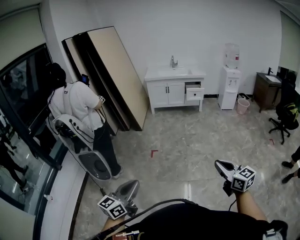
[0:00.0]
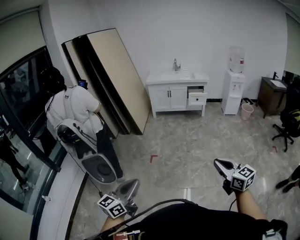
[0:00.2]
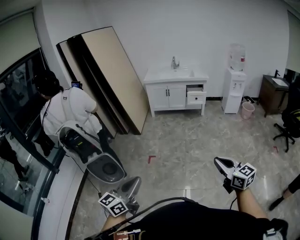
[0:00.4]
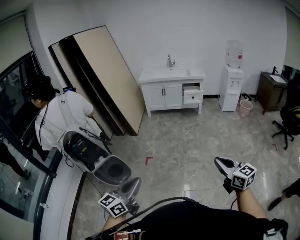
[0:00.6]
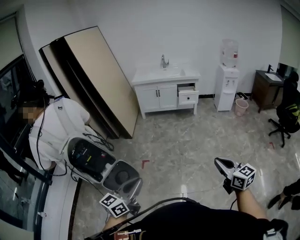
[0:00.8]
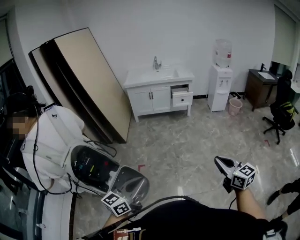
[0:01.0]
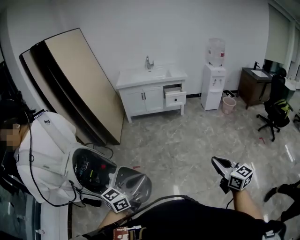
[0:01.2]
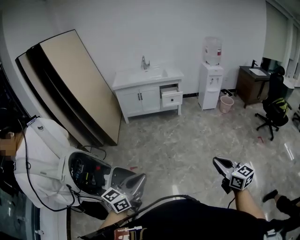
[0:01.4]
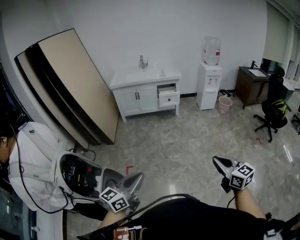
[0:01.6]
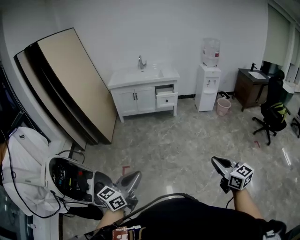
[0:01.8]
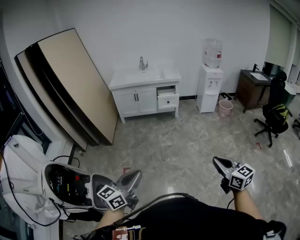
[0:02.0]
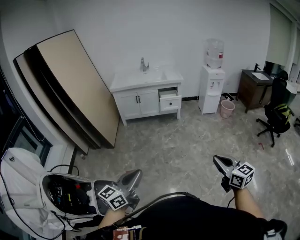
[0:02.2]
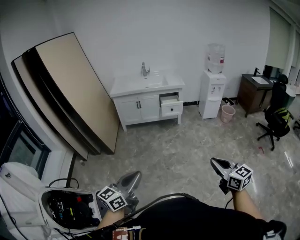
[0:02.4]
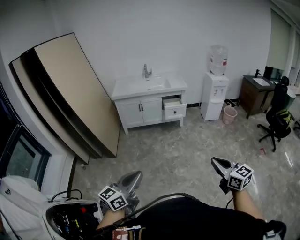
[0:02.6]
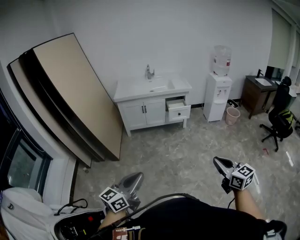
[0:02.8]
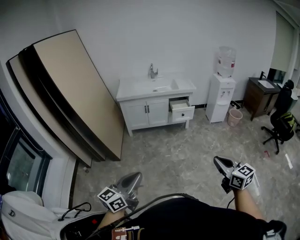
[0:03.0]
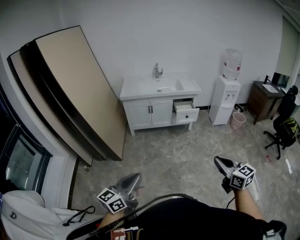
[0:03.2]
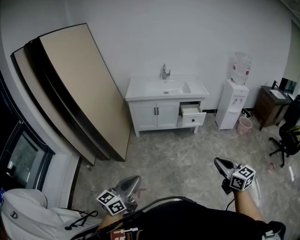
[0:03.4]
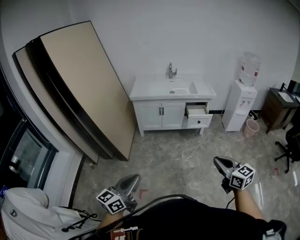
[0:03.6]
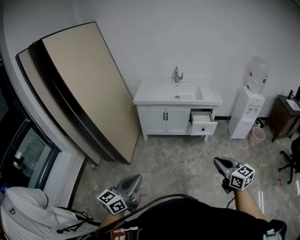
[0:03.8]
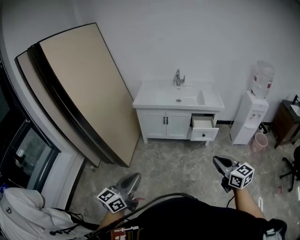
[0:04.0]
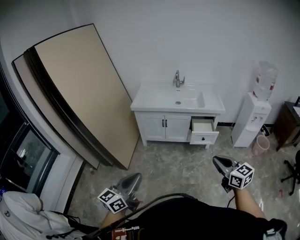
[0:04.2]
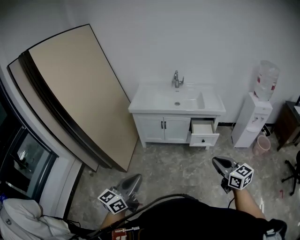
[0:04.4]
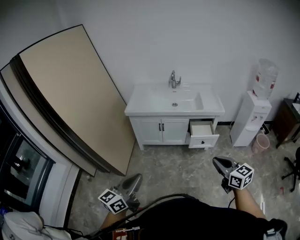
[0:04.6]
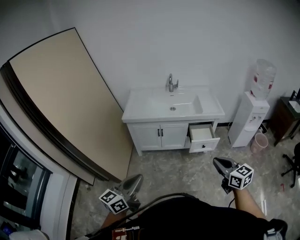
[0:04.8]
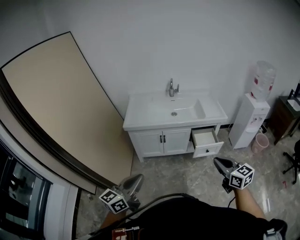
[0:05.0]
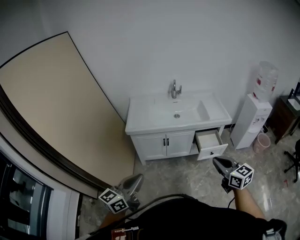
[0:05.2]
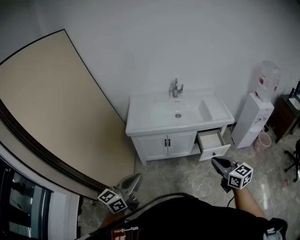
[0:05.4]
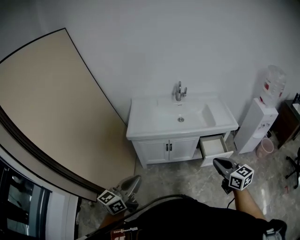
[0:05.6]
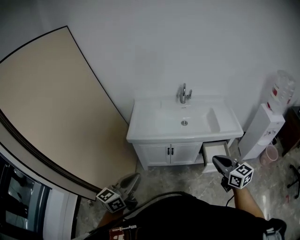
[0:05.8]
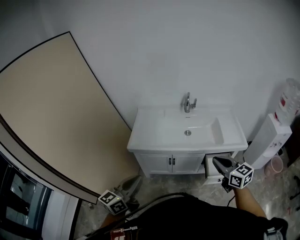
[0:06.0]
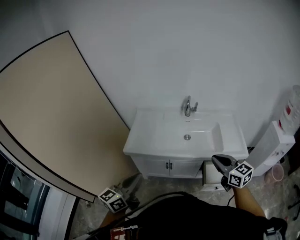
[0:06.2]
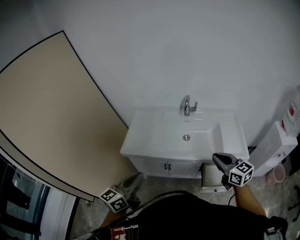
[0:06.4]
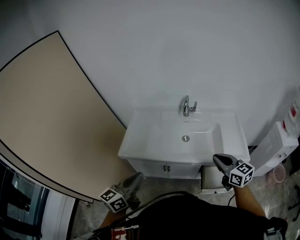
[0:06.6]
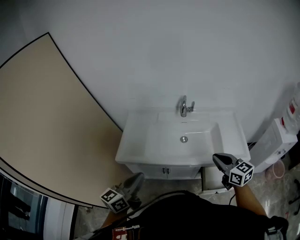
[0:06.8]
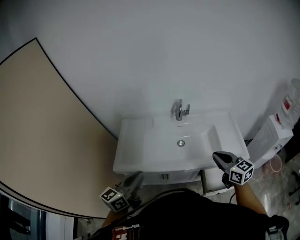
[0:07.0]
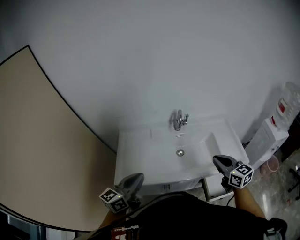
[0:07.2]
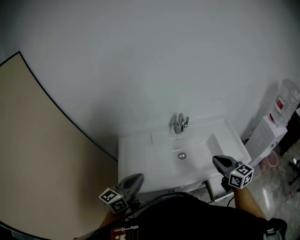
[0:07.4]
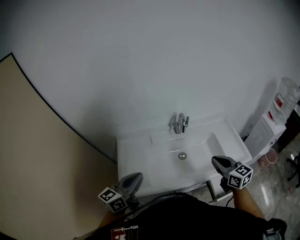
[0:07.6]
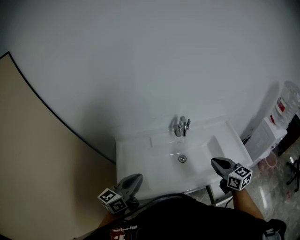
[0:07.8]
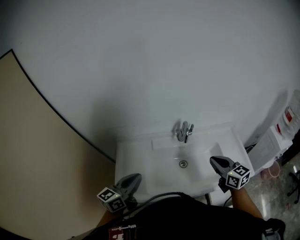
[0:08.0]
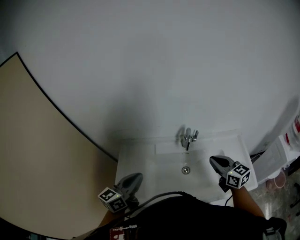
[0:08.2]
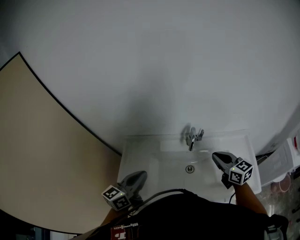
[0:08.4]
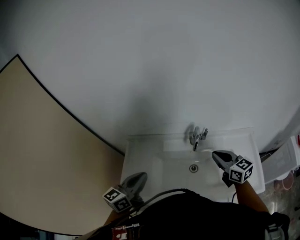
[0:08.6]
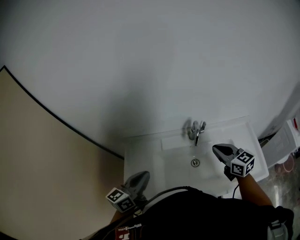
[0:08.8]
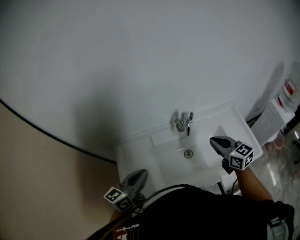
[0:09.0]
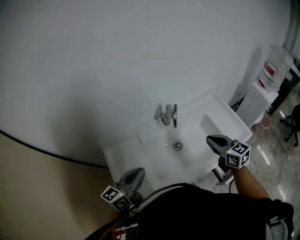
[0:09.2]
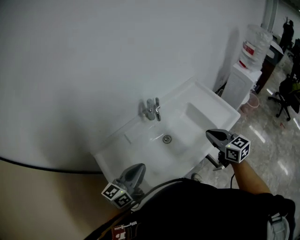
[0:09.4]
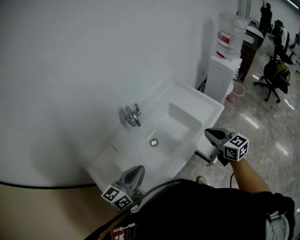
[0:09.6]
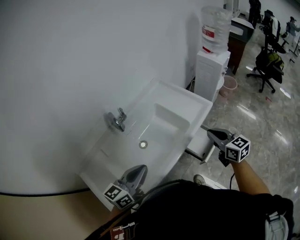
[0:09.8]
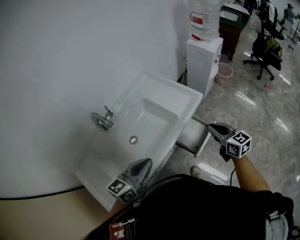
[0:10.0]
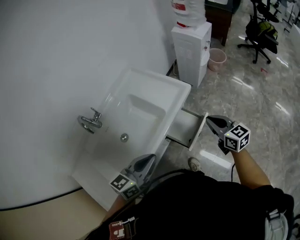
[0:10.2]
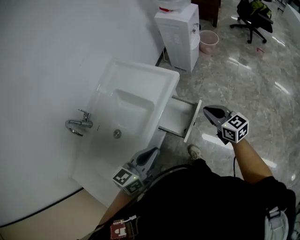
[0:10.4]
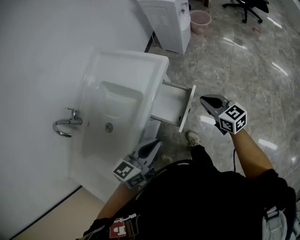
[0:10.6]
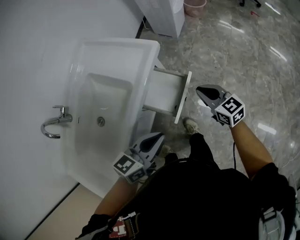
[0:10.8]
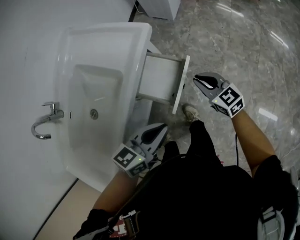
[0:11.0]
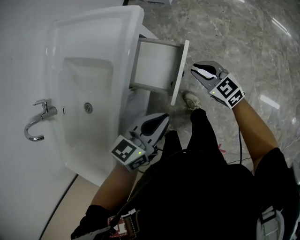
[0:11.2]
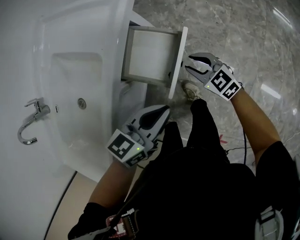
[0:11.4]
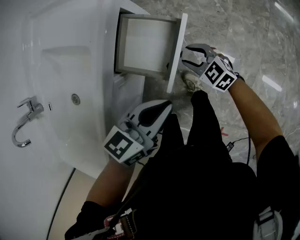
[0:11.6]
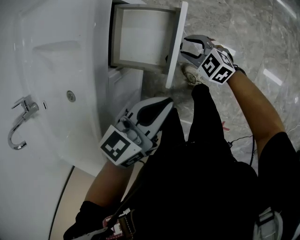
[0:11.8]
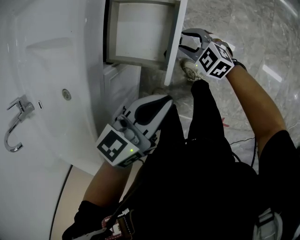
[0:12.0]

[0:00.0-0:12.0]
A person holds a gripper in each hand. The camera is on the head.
0:00.0 to 0:01.6: The grippers both shift forward and to the right by approximately 40 cm.
0:01.6 to 0:03.0: The grippers both shift forward and to the left by some 30 cm.
0:03.0 to 0:04.4: Both grippers travel together forward, about 40 cm.
0:04.4 to 0:06.0: The pair of grippers is taken forward, some 50 cm.
0:06.0 to 0:07.6: The grippers both shift forward by roughly 35 cm.
0:07.6 to 0:09.0: Both grippers travel together forward, roughly 15 cm.
0:09.0 to 0:10.4: Both grippers are carried some 50 cm. The left gripper changes its angle by roughly 50 degrees. The right gripper changes its angle by about 40 degrees.
0:10.4 to 0:12.0: The left gripper goes about 30 cm downward and to the right, and changes its angle by about 20 degrees. The right gripper shifts about 40 cm downward, swivels about 30 degrees, and opens its fingers.

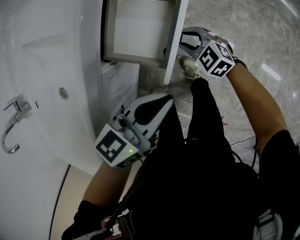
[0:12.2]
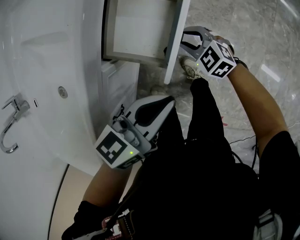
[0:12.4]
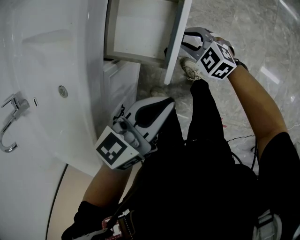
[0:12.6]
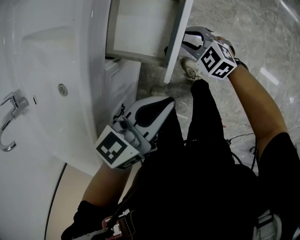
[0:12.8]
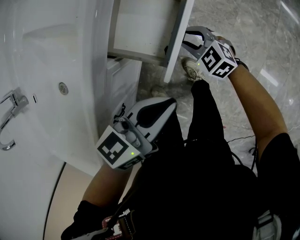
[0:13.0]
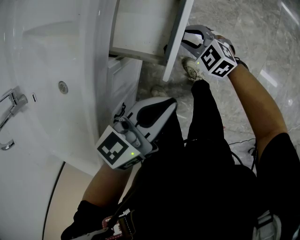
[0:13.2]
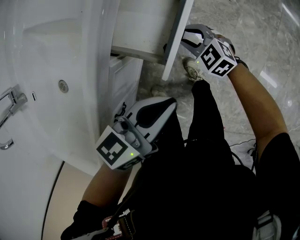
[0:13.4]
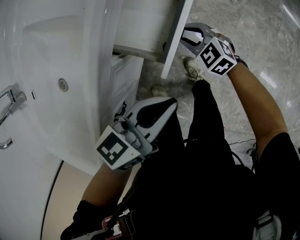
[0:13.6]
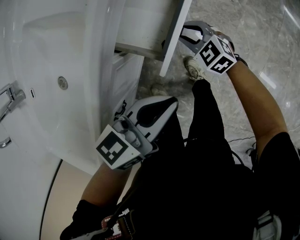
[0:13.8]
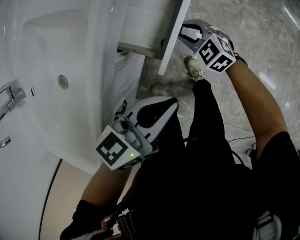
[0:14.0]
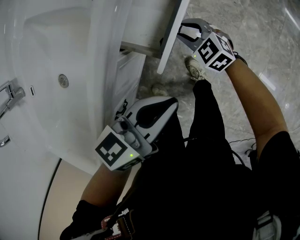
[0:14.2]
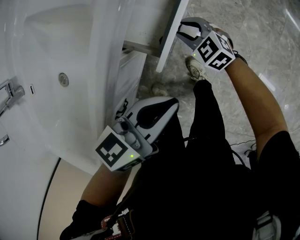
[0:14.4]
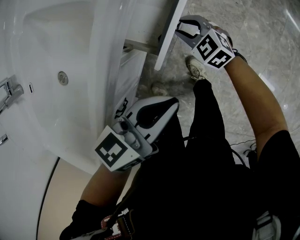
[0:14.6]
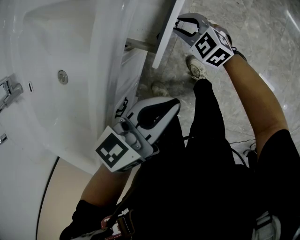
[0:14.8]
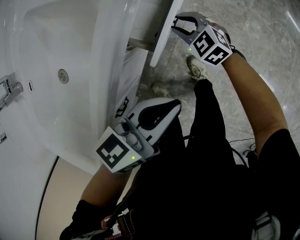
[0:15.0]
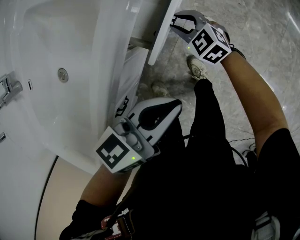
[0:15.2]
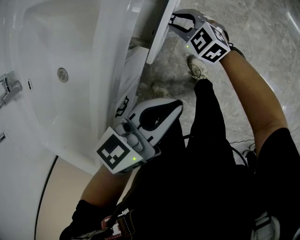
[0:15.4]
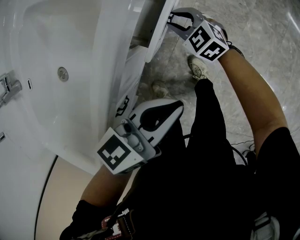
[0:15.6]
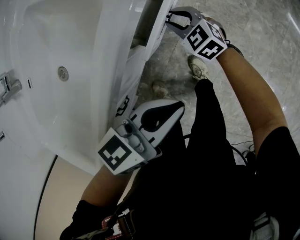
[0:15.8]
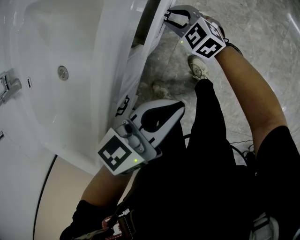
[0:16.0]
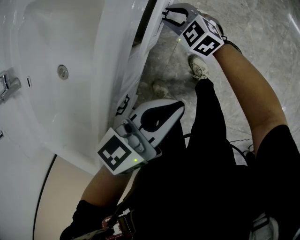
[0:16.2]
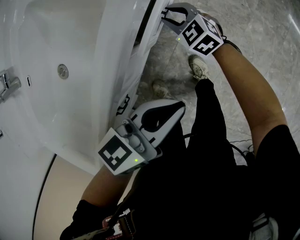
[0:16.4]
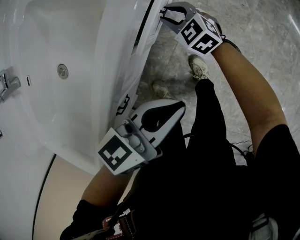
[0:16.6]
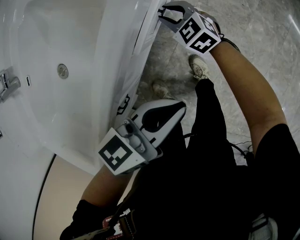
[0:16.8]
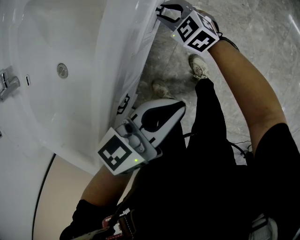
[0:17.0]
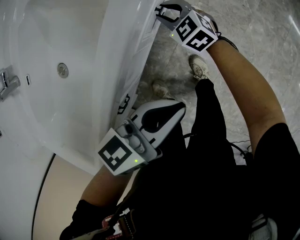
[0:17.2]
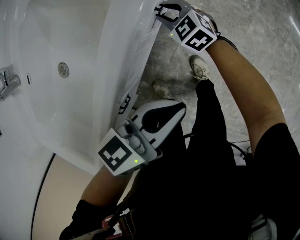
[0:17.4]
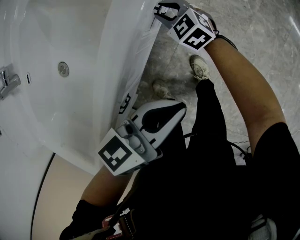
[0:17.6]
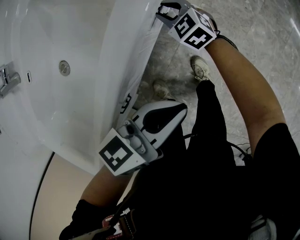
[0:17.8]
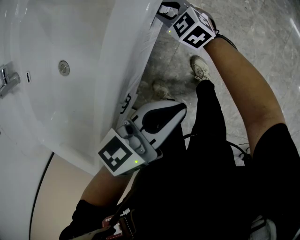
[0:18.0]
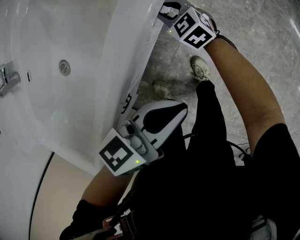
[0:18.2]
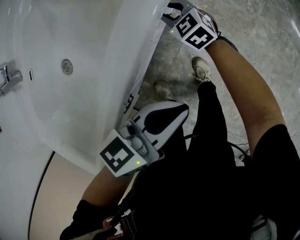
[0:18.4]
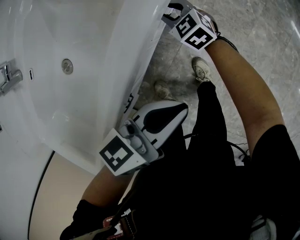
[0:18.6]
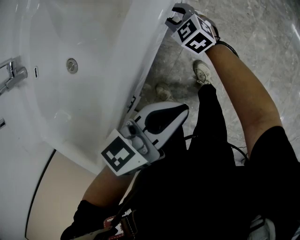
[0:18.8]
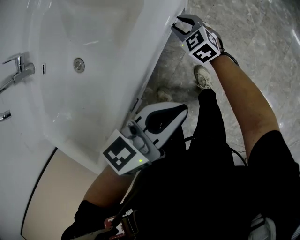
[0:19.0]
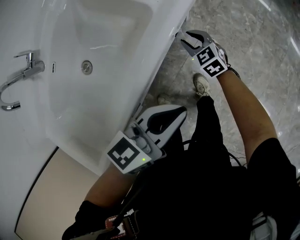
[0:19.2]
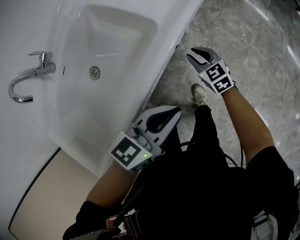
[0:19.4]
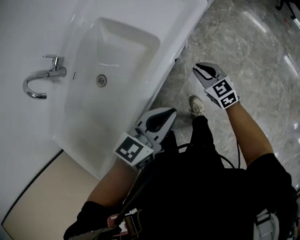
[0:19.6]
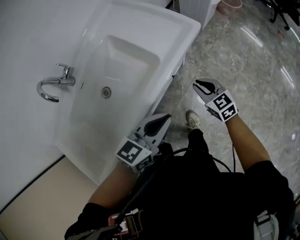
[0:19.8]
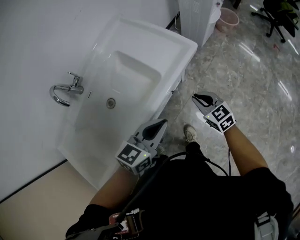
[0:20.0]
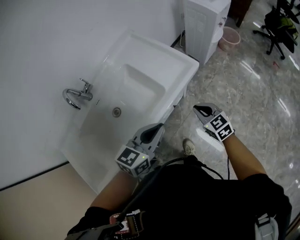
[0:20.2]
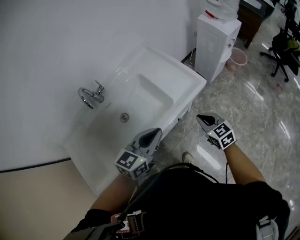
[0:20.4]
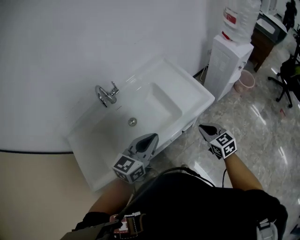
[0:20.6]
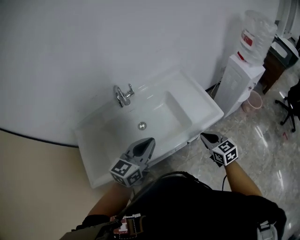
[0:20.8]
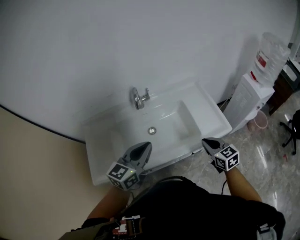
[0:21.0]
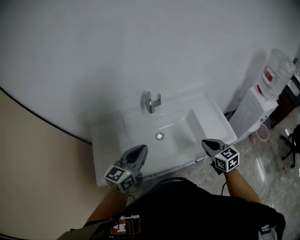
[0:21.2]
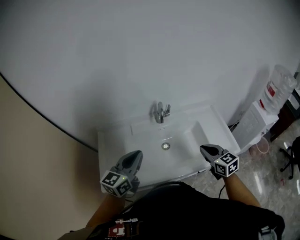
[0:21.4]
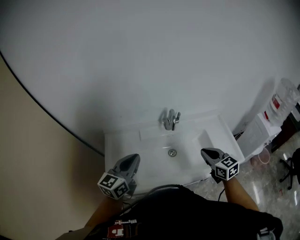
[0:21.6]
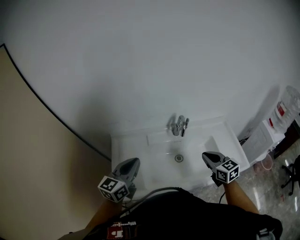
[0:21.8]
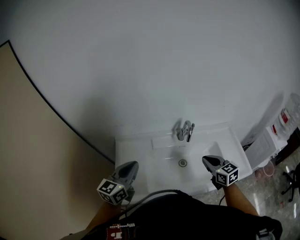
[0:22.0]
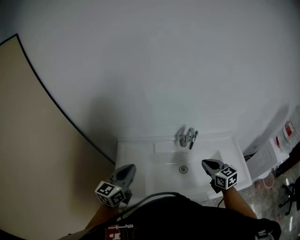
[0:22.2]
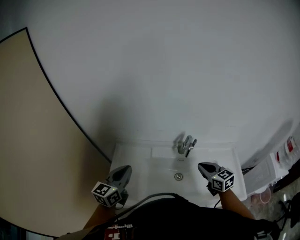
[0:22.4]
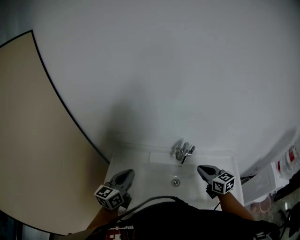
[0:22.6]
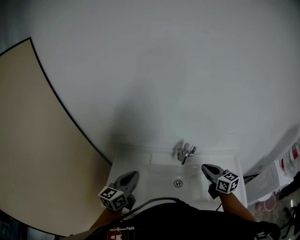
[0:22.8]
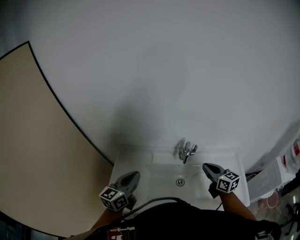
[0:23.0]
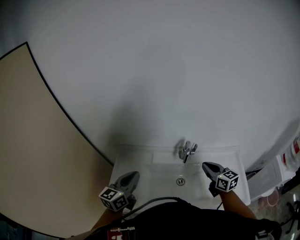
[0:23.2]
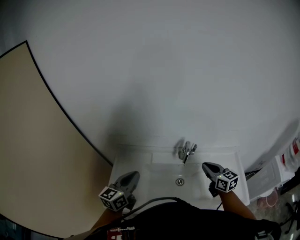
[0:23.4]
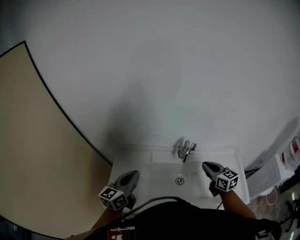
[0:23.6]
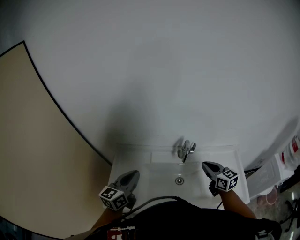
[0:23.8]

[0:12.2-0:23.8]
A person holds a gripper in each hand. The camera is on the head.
0:12.2 to 0:13.6: The right gripper moves roughly 5 cm.
0:13.6 to 0:15.0: The right gripper goes roughly 5 cm to the left.
0:15.0 to 0:16.6: The right gripper shifts by about 5 cm.
0:16.6 to 0:18.0: There are only small adjustments of the grippers.
0:18.0 to 0:19.4: The left gripper moves upward, some 10 cm; the right gripper is displaced upward and to the right by approximately 10 cm.
0:19.4 to 0:21.0: The grippers both shift upward by approximately 35 cm. The left gripper swivels some 50 degrees. The right gripper changes its angle by roughly 30 degrees, and closes its fingers.
0:21.0 to 0:22.4: The right gripper goes about 30 cm to the left and forward, and rotates approximately 20 degrees. The left gripper travels to the left by some 35 cm, and swivels some 30 degrees.
0:22.4 to 0:23.8: Both grippers travel together to the right, some 5 cm.
